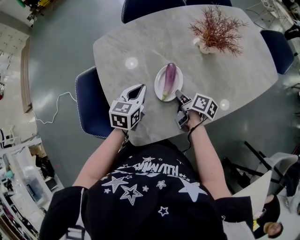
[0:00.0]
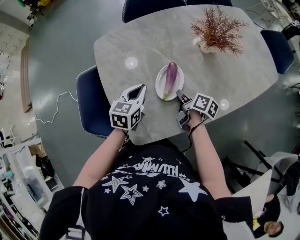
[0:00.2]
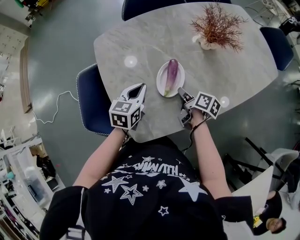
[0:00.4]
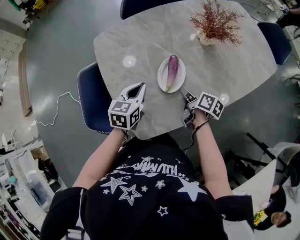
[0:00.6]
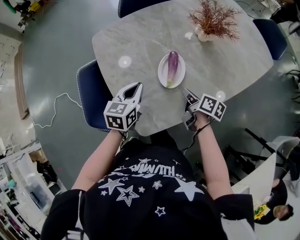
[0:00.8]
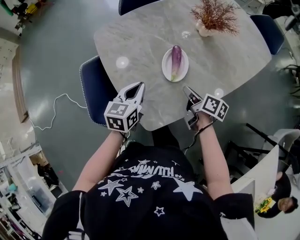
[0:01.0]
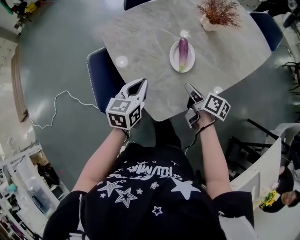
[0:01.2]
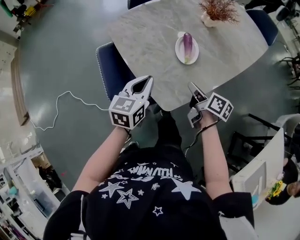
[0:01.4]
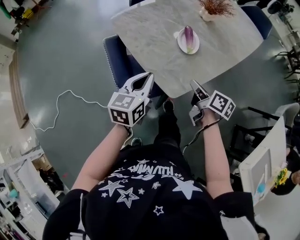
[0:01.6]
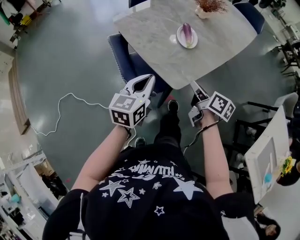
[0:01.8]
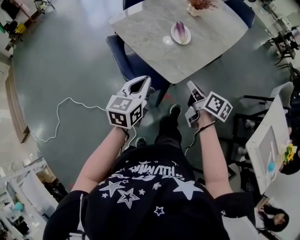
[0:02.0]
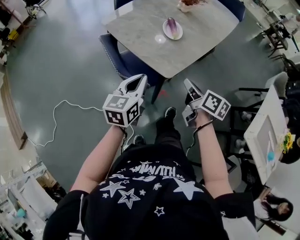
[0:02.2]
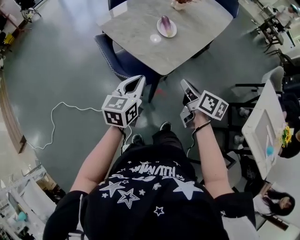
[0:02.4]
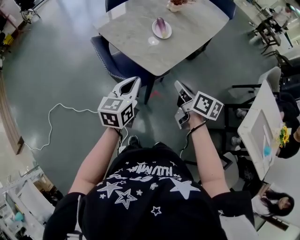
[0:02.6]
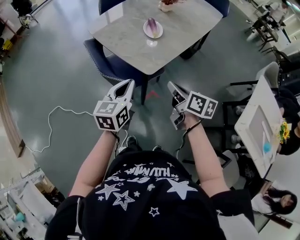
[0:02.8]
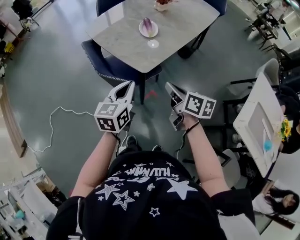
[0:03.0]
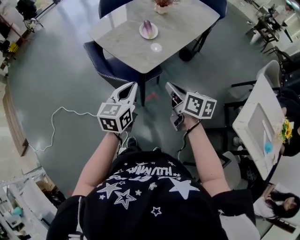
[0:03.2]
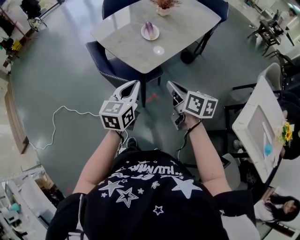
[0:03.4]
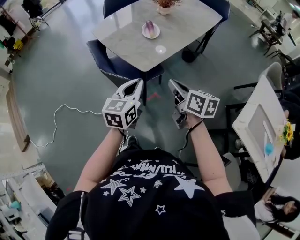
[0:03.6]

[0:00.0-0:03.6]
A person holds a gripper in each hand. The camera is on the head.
0:00.0 to 0:01.8: The left gripper ends up roughly 35 cm from where it was, and rotates roughly 20 degrees.
0:01.8 to 0:03.6: The left gripper shifts by roughly 20 cm.

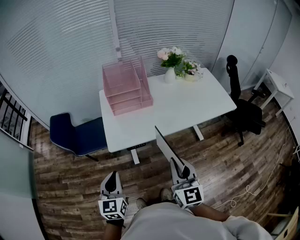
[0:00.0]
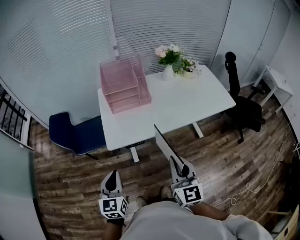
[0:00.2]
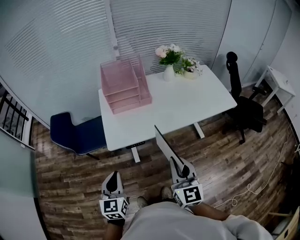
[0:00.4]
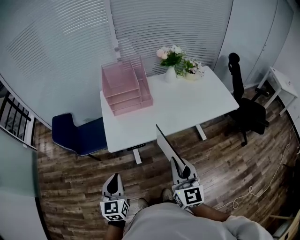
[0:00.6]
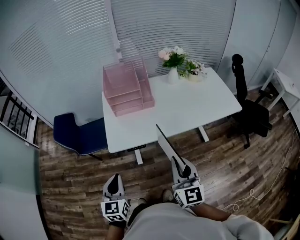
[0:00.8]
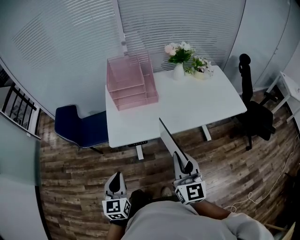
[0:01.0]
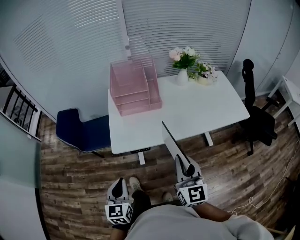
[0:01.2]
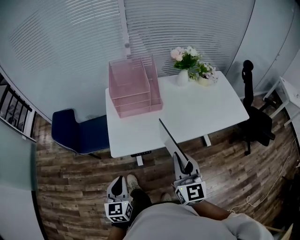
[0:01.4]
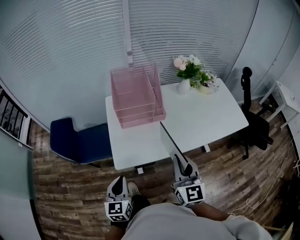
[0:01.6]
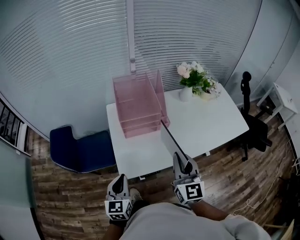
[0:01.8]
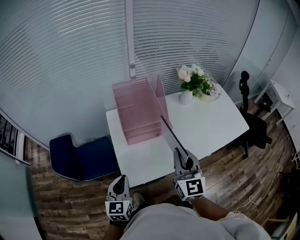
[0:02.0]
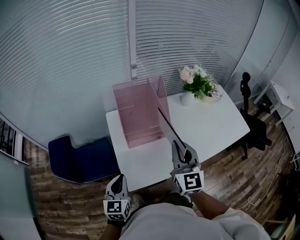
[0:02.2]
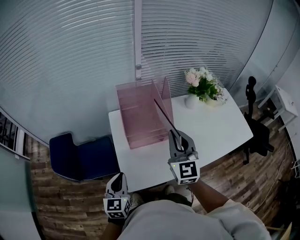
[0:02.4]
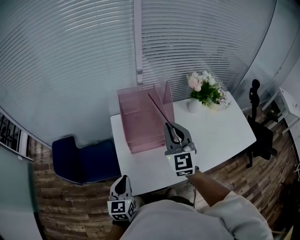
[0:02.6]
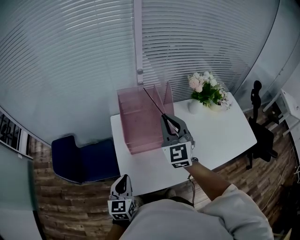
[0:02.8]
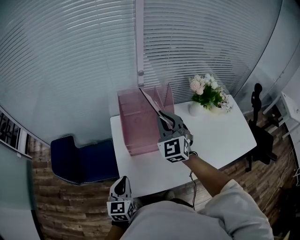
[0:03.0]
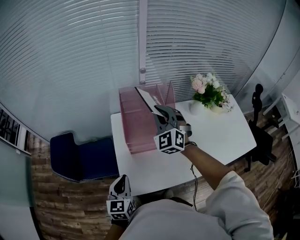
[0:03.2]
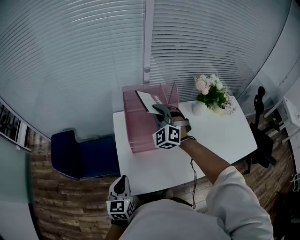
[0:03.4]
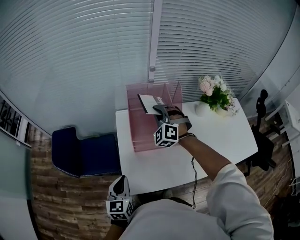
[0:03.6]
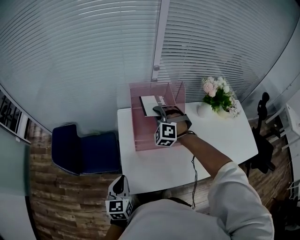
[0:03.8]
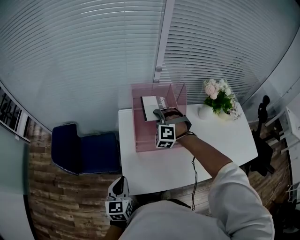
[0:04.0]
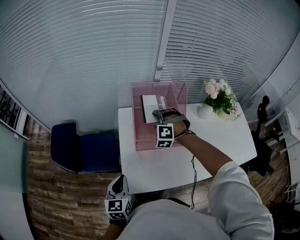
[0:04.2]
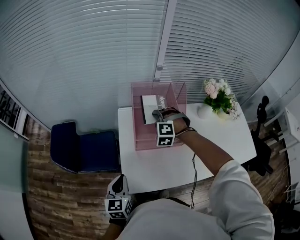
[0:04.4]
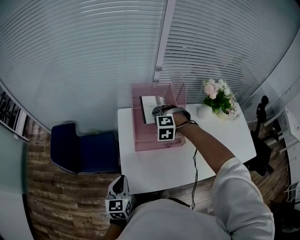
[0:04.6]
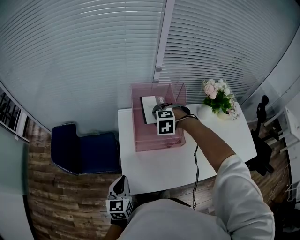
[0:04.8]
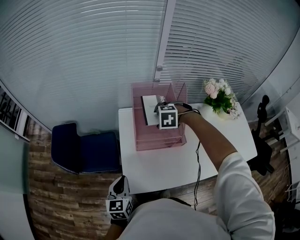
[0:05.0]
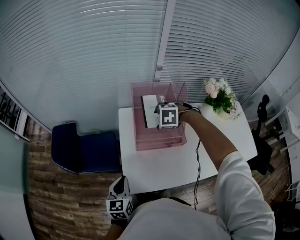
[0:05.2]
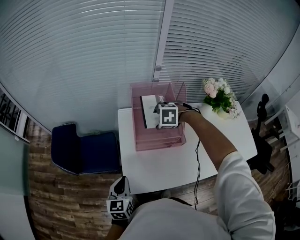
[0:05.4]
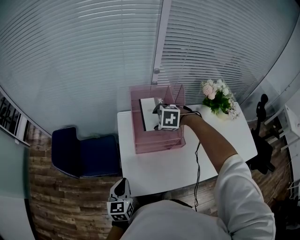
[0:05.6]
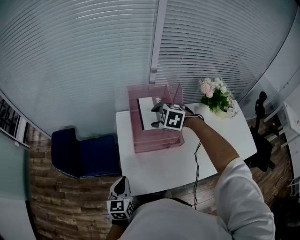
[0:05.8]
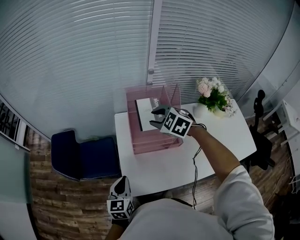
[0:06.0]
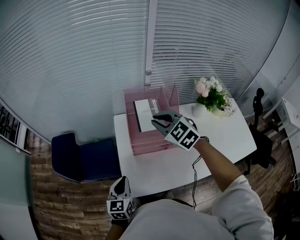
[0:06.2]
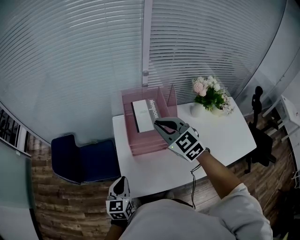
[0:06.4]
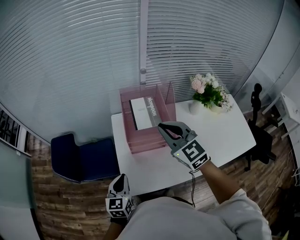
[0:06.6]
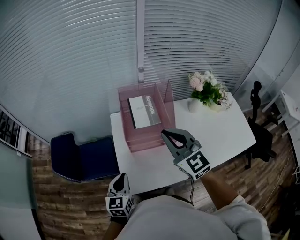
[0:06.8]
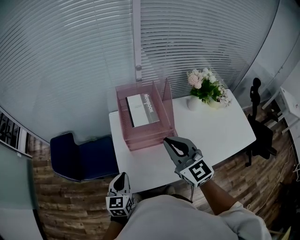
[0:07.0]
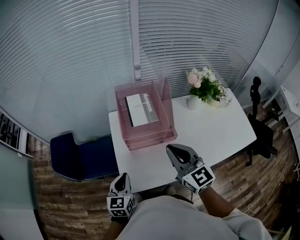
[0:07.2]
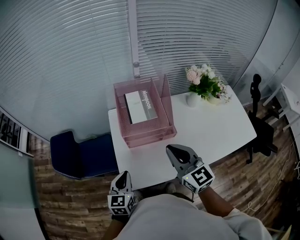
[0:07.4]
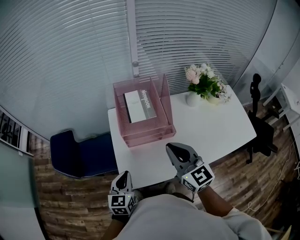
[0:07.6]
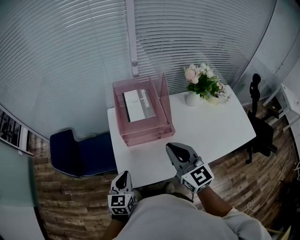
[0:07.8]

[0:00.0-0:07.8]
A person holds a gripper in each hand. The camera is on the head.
0:00.0 to 0:01.6: The left gripper goes roughly 15 cm forward and downward, while the right gripper is displaced forward by roughly 15 cm.
0:01.6 to 0:03.2: The right gripper shifts approximately 40 cm forward, and rotates around the line of its fingers by some 50 degrees, counterclockwise from behind. The left gripper heads forward, covering approximately 20 cm.
0:03.2 to 0:04.6: The right gripper moves downward, some 15 cm, angles its fingers downward, by roughly 50 degrees, and opens.
0:04.6 to 0:06.2: The right gripper travels upward by some 15 cm, changes its angle by roughly 50 degrees, and opens, then closes once more.
0:06.2 to 0:07.8: The left gripper moves some 5 cm. Meanwhile the right gripper travels backward by about 20 cm, and changes its angle by approximately 40 degrees.

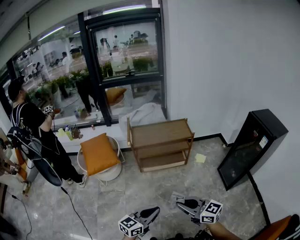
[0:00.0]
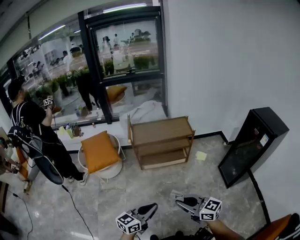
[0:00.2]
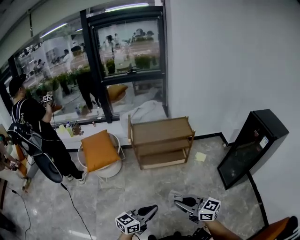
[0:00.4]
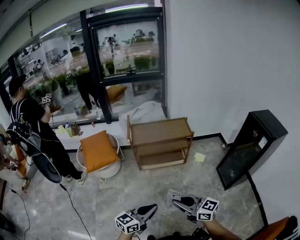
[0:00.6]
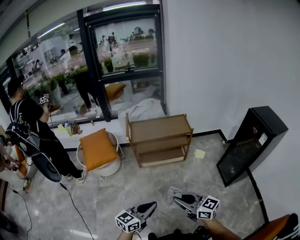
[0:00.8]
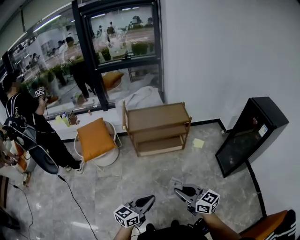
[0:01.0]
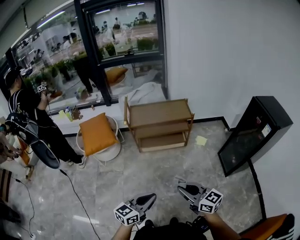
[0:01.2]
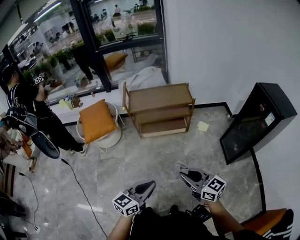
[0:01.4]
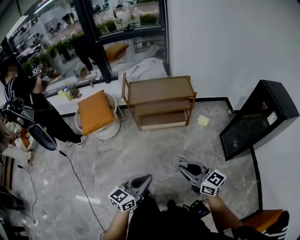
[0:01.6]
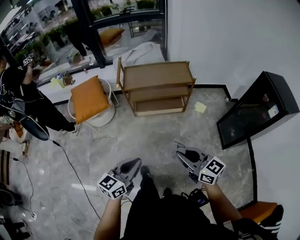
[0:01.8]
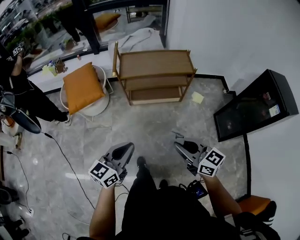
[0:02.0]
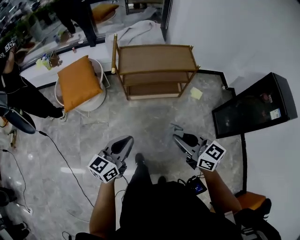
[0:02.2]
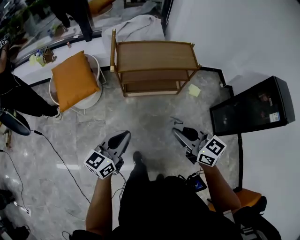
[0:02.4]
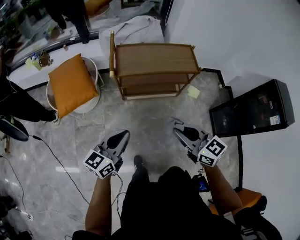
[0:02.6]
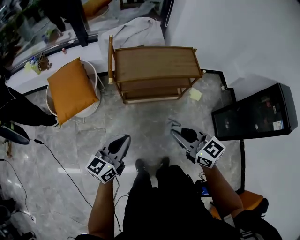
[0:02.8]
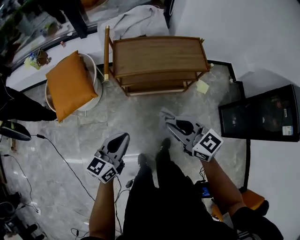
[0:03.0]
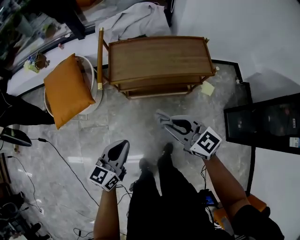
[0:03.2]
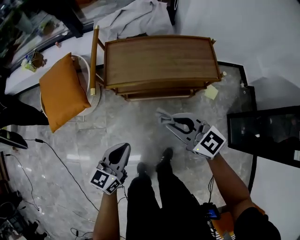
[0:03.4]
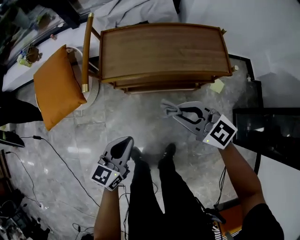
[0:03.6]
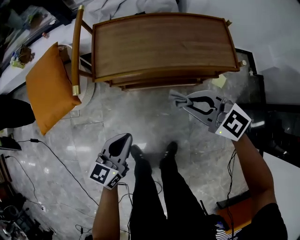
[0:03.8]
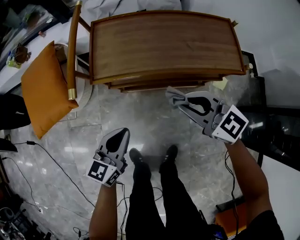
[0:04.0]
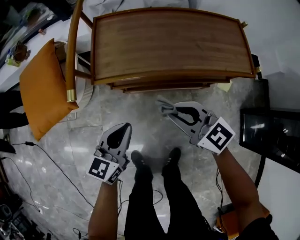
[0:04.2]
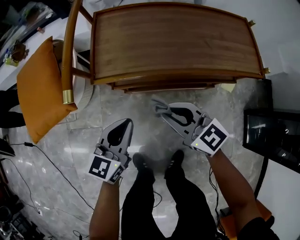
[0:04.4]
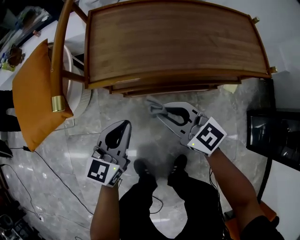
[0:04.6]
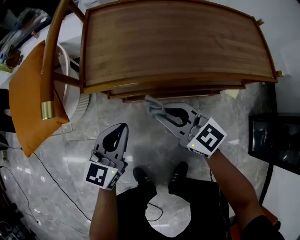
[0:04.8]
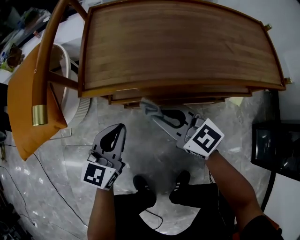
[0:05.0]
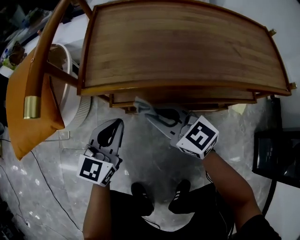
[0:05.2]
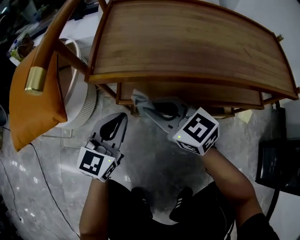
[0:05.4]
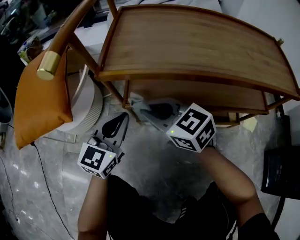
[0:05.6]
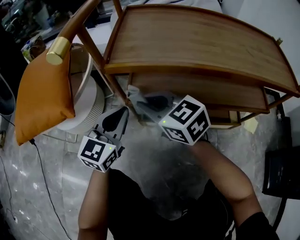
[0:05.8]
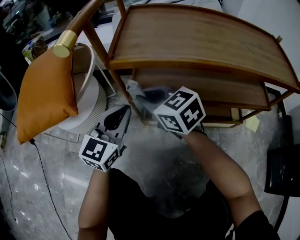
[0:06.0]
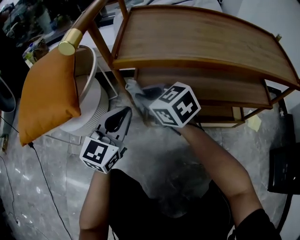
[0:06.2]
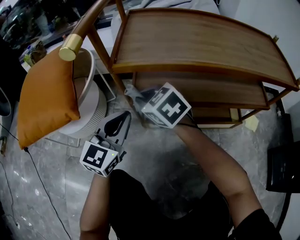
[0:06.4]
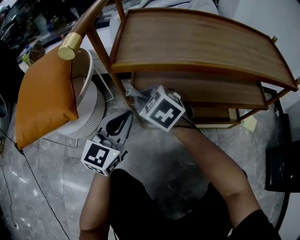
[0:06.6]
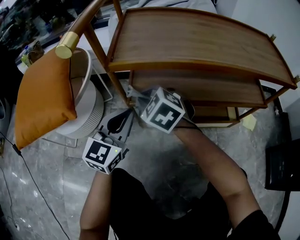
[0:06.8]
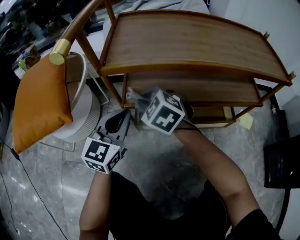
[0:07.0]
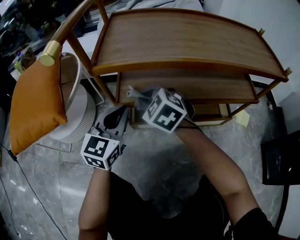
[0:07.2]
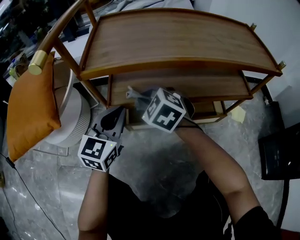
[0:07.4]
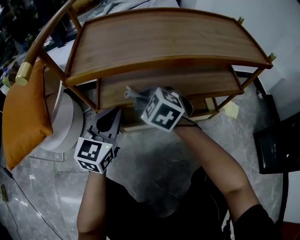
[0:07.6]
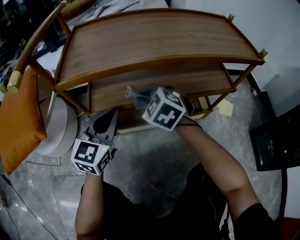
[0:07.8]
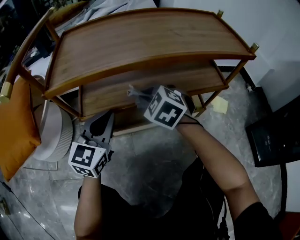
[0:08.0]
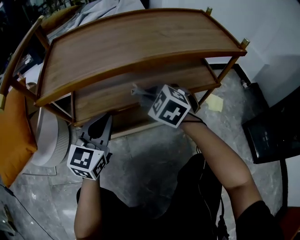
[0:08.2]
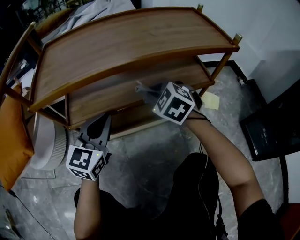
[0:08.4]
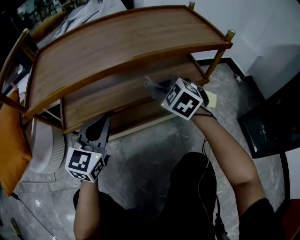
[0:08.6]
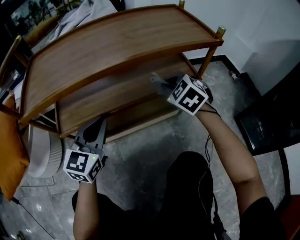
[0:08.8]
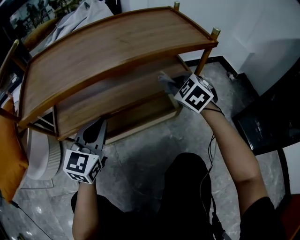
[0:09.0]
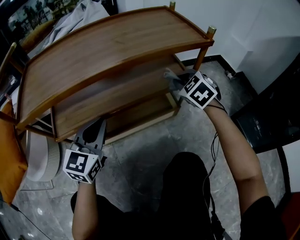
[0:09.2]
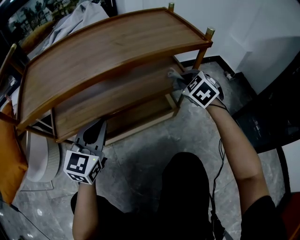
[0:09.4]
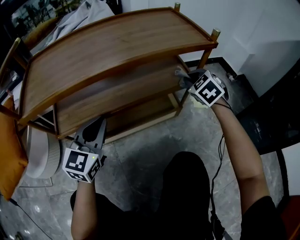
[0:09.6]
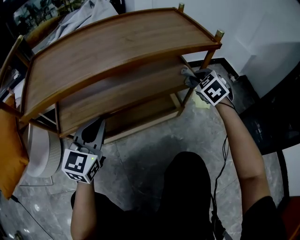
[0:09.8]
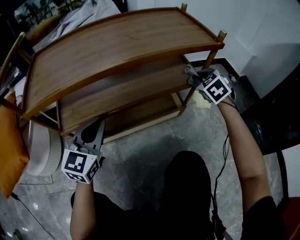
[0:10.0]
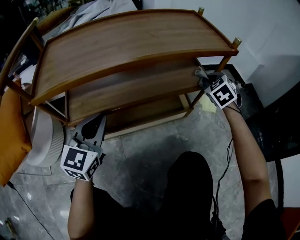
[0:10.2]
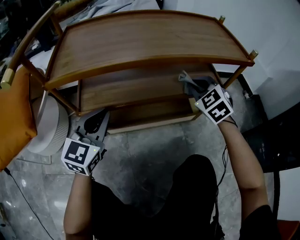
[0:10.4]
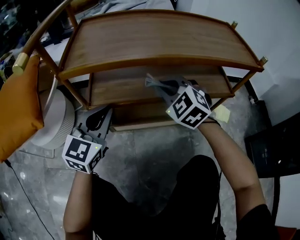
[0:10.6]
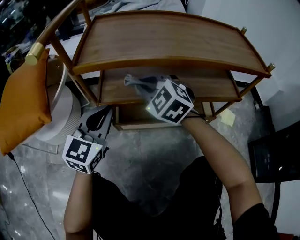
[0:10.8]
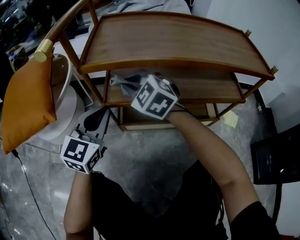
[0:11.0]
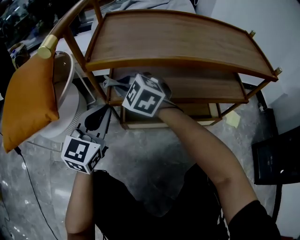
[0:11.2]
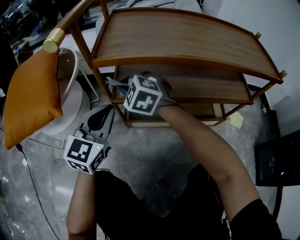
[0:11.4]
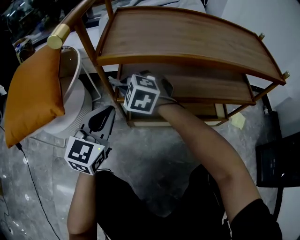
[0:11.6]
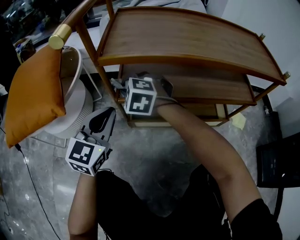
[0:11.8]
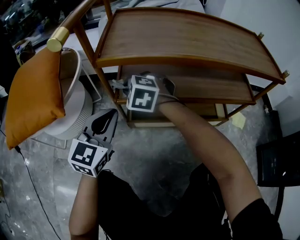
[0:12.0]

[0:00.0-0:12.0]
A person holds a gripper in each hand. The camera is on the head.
0:00.0 to 0:01.6: The left gripper changes place by about 5 cm. Meanwhile the right gripper shifts some 10 cm to the right.
0:01.6 to 0:03.0: The two grippers go some 35 cm forward.
0:03.0 to 0:04.4: The grippers both shift downward and forward by some 35 cm.
0:04.4 to 0:06.0: Both grippers travel together downward, forward and to the left, approximately 20 cm. The left gripper changes its angle by roughly 20 degrees.
0:06.0 to 0:07.6: The grippers both shift to the right by roughly 10 cm. The right gripper swivels some 40 degrees.
0:07.6 to 0:09.0: The left gripper is displaced to the right by approximately 15 cm, while the right gripper heads to the right, covering about 35 cm, and swivels about 30 degrees.
0:09.0 to 0:10.4: The two grippers go some 10 cm to the left.
0:10.4 to 0:12.0: The left gripper shifts some 15 cm to the left; the right gripper moves to the left, some 40 cm, and rotates approximately 40 degrees.
